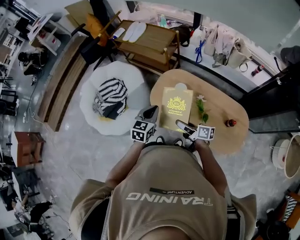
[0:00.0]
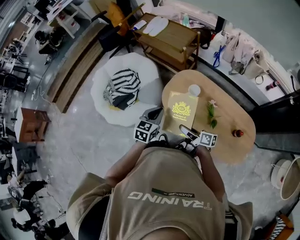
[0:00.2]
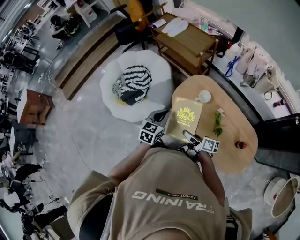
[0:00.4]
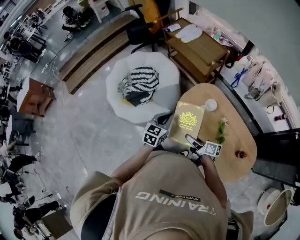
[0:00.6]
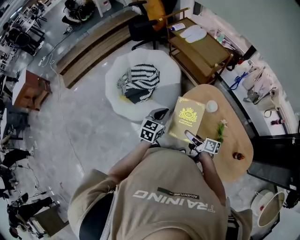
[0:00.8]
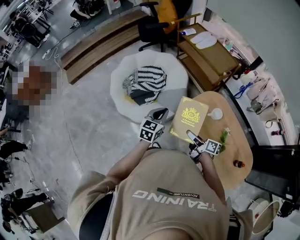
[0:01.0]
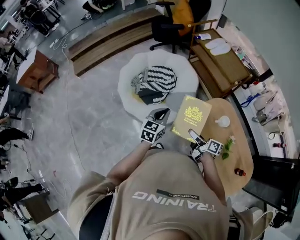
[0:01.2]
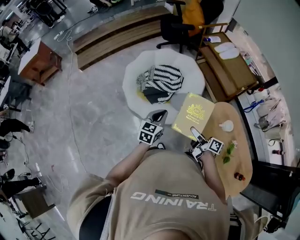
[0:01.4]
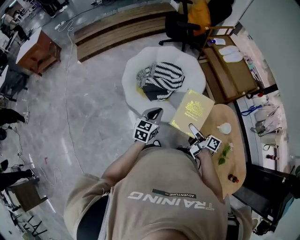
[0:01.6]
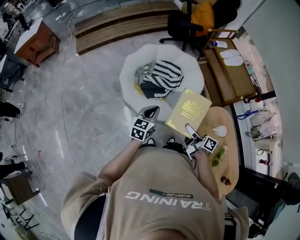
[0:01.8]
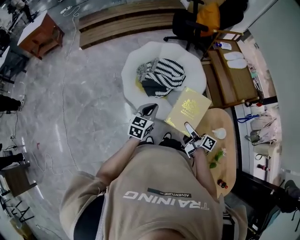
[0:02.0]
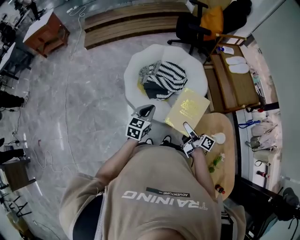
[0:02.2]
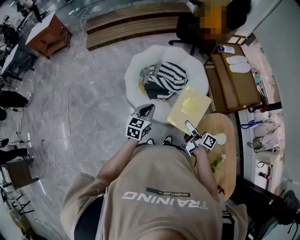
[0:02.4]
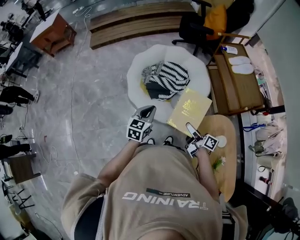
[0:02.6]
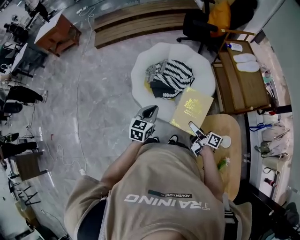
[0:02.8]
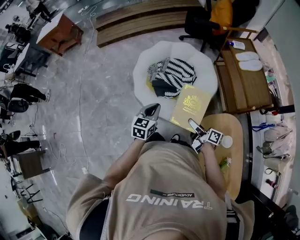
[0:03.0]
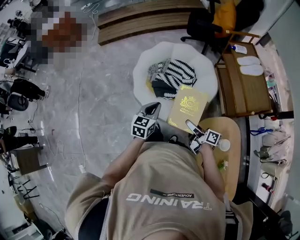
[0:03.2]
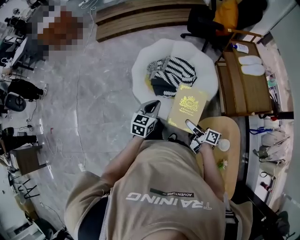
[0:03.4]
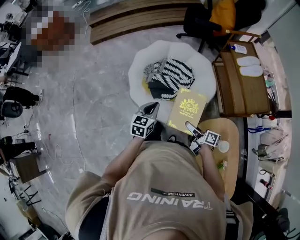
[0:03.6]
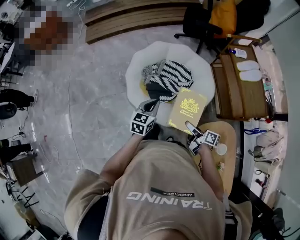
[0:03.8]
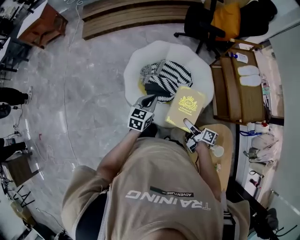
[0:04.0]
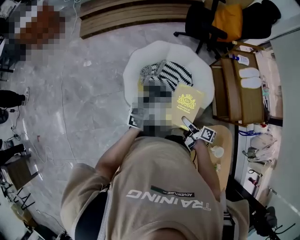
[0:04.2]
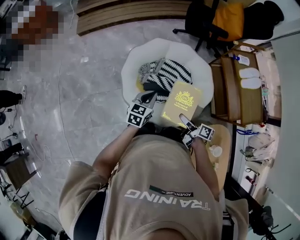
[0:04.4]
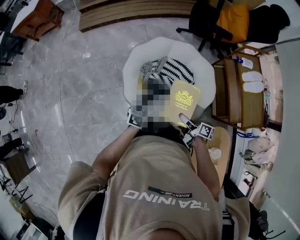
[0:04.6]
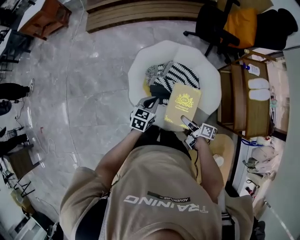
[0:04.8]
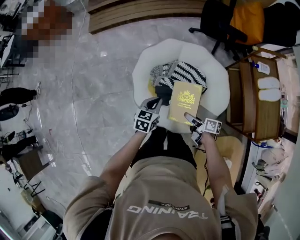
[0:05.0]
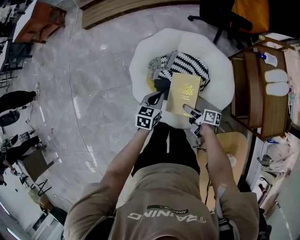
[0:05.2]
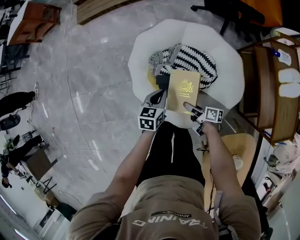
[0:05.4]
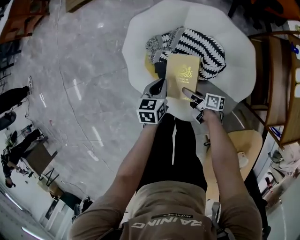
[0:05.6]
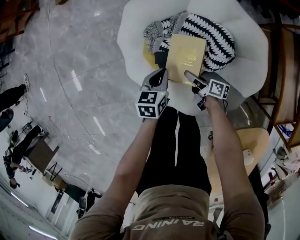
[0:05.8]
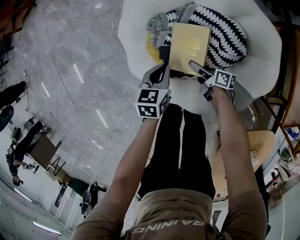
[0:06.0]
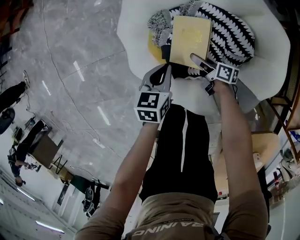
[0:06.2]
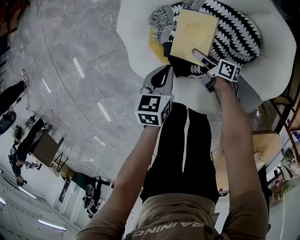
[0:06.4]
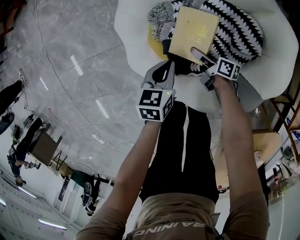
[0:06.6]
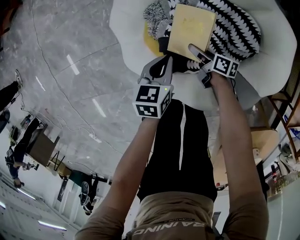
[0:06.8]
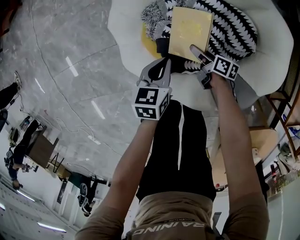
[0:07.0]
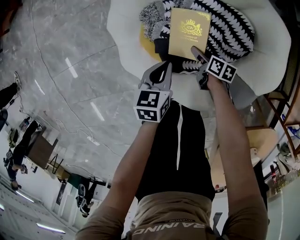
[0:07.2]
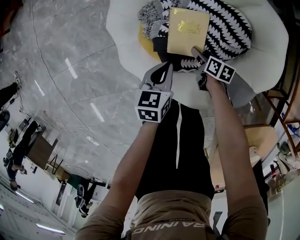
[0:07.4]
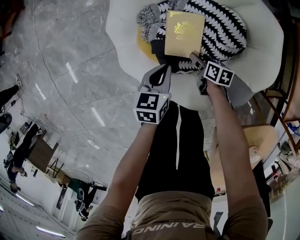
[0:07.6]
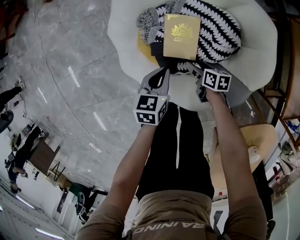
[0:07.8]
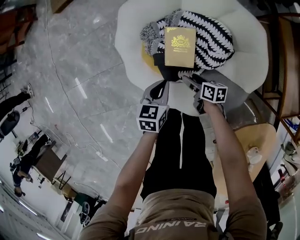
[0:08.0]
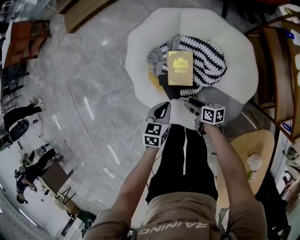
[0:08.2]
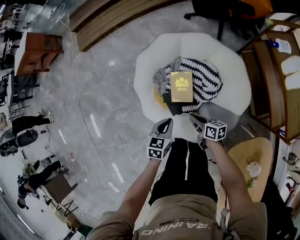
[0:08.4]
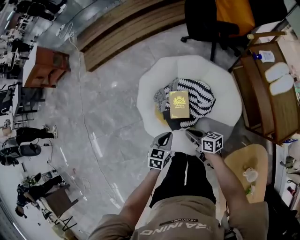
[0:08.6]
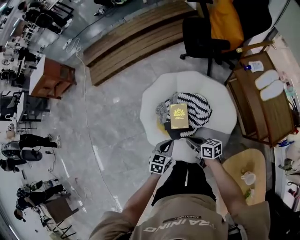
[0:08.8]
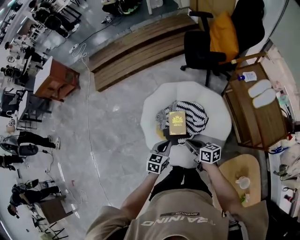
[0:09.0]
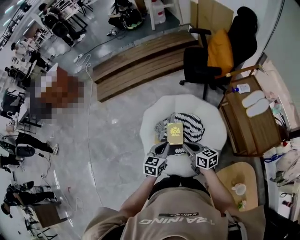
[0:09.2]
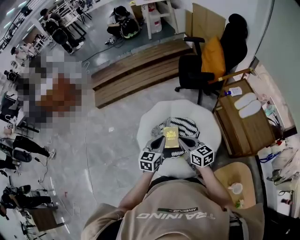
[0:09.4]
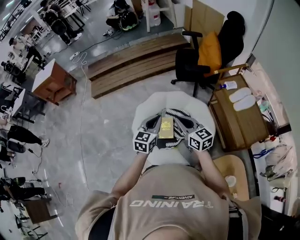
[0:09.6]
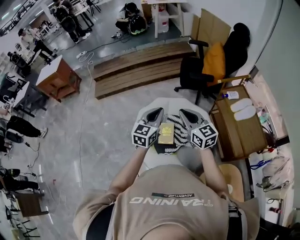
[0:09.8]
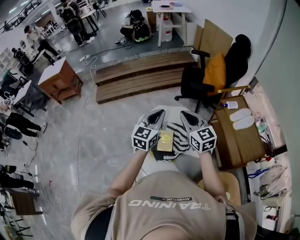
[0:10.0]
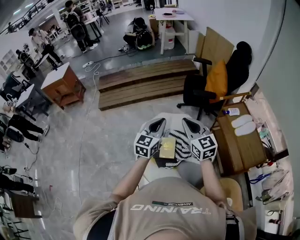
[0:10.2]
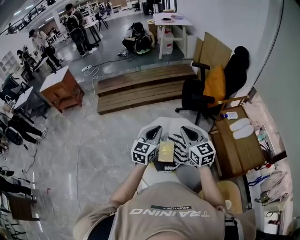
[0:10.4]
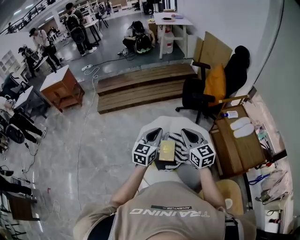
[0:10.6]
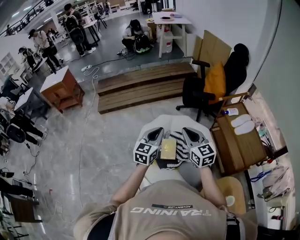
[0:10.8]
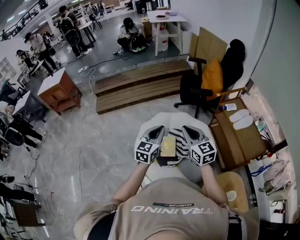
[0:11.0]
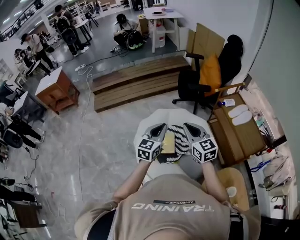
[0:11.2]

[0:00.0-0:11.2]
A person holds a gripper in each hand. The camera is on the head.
0:00.0 to 0:01.6: The left gripper moves roughly 40 cm, and rotates some 30 degrees; the right gripper shifts by some 35 cm, and changes its angle by about 20 degrees.
0:01.6 to 0:03.2: Both grippers travel together forward and to the right, about 10 cm. The right gripper changes its angle by roughly 20 degrees.
0:03.2 to 0:04.8: The left gripper heads forward and downward, covering approximately 25 cm; the right gripper moves forward, roughly 20 cm, and turns by roughly 20 degrees.
0:04.8 to 0:06.4: The right gripper is displaced downward and forward by approximately 50 cm. The left gripper is displaced downward by about 35 cm, and turns by about 20 degrees.
0:06.4 to 0:08.0: The left gripper shifts approximately 5 cm upward. The right gripper shifts some 10 cm upward and backward, and swivels some 20 degrees.
0:08.0 to 0:09.6: The two grippers go roughly 60 cm upward. The right gripper points its fingers some 30 degrees further upward, and closes, while the left gripper swivels some 40 degrees.
0:09.6 to 0:11.2: The two grippers go about 5 cm upward.

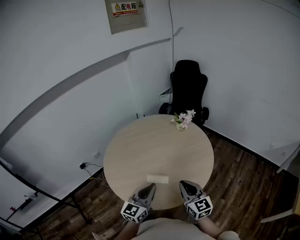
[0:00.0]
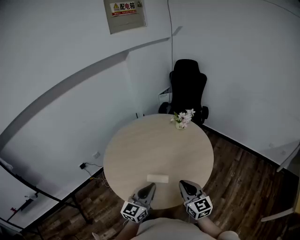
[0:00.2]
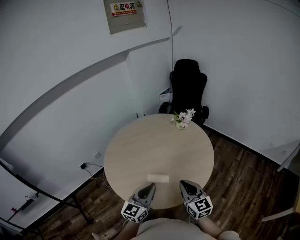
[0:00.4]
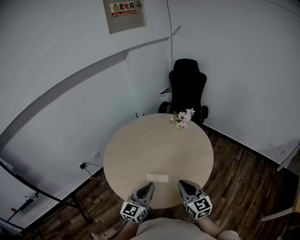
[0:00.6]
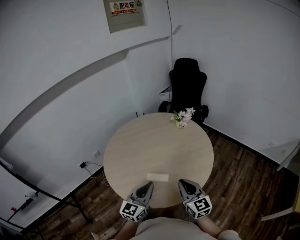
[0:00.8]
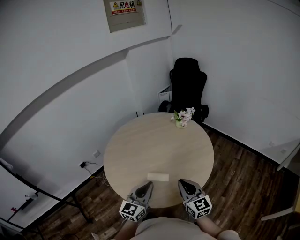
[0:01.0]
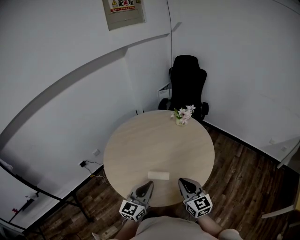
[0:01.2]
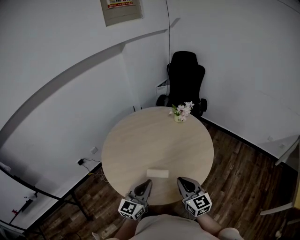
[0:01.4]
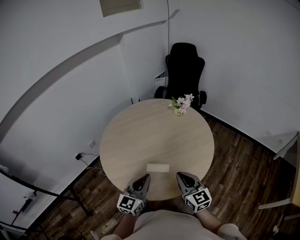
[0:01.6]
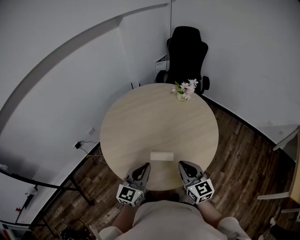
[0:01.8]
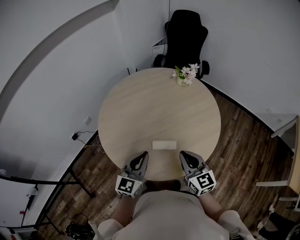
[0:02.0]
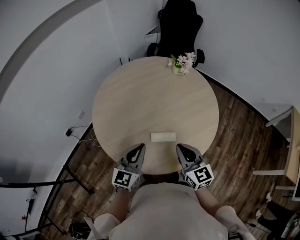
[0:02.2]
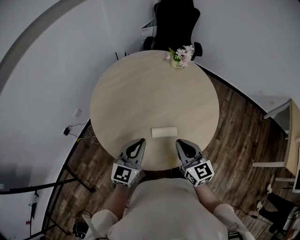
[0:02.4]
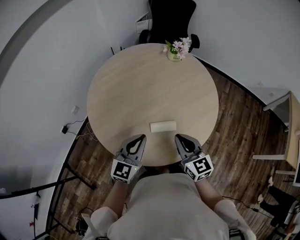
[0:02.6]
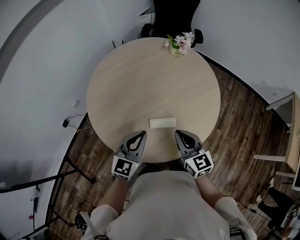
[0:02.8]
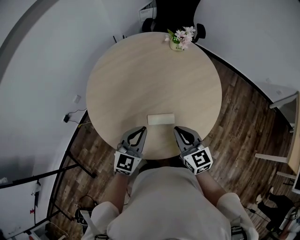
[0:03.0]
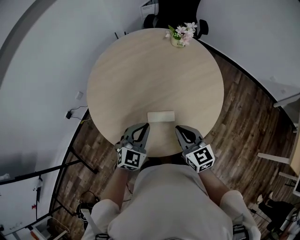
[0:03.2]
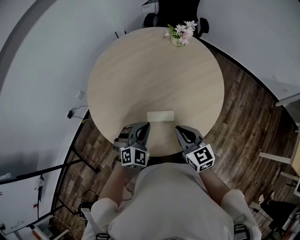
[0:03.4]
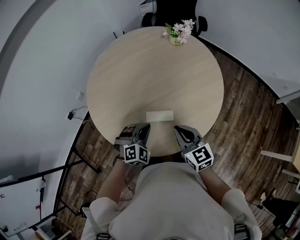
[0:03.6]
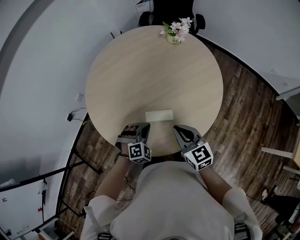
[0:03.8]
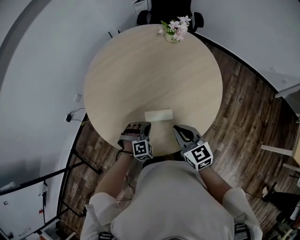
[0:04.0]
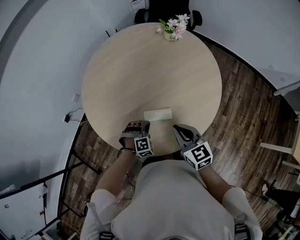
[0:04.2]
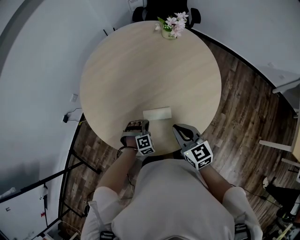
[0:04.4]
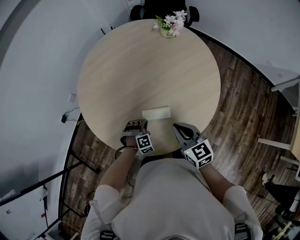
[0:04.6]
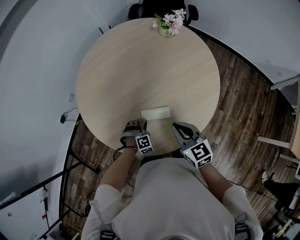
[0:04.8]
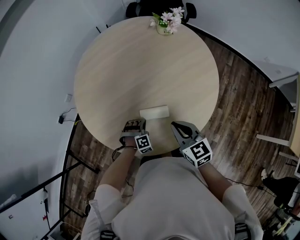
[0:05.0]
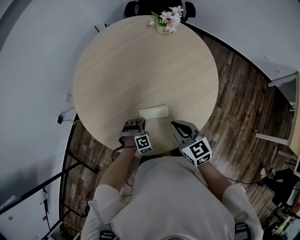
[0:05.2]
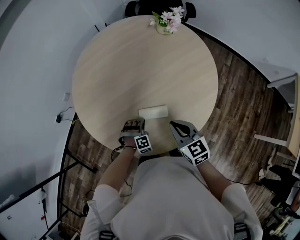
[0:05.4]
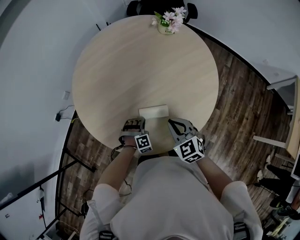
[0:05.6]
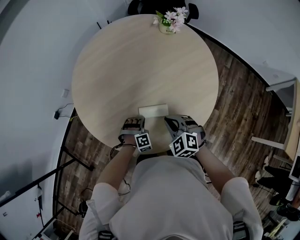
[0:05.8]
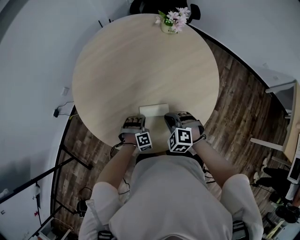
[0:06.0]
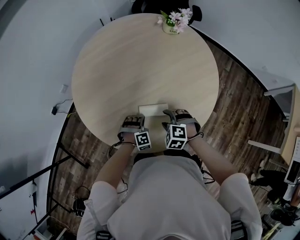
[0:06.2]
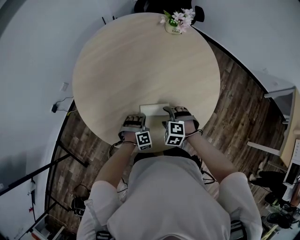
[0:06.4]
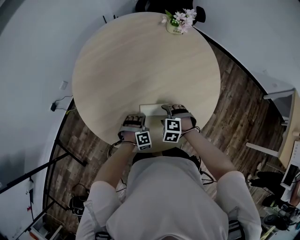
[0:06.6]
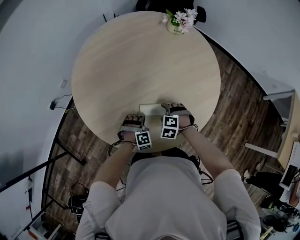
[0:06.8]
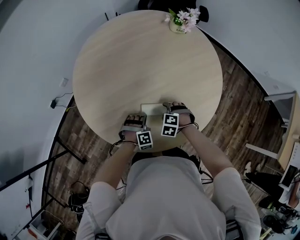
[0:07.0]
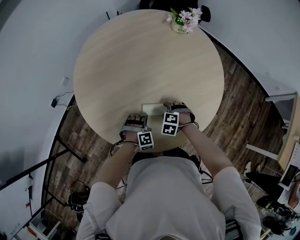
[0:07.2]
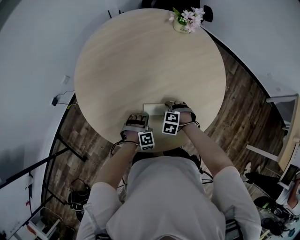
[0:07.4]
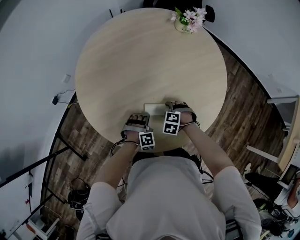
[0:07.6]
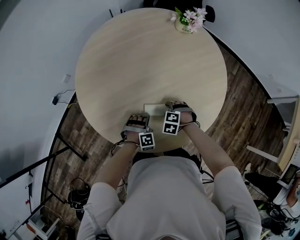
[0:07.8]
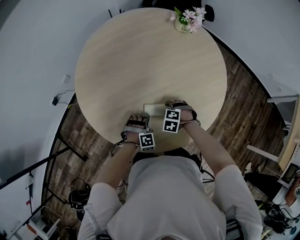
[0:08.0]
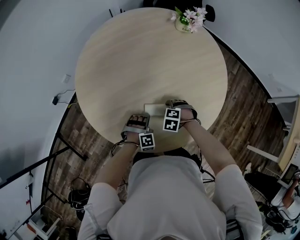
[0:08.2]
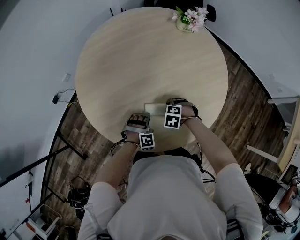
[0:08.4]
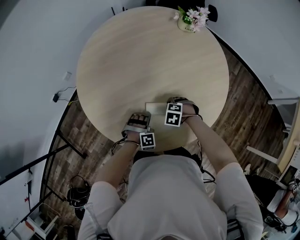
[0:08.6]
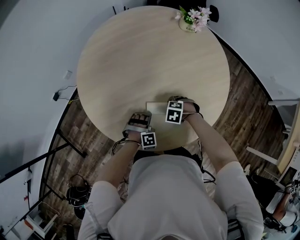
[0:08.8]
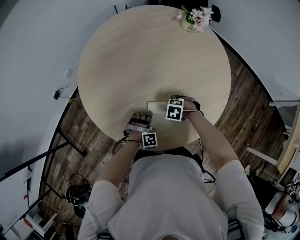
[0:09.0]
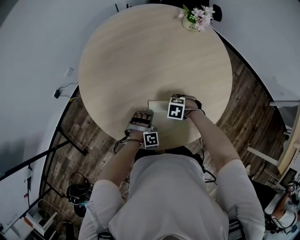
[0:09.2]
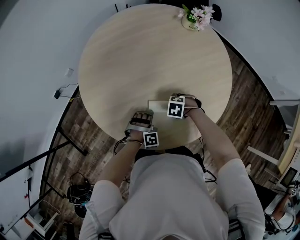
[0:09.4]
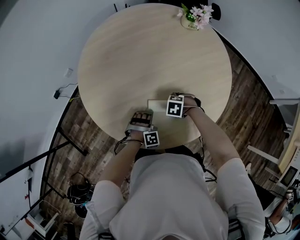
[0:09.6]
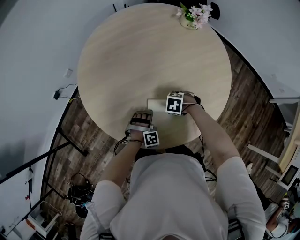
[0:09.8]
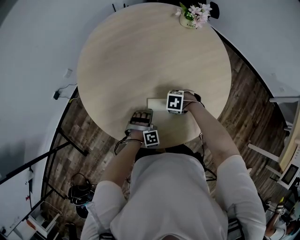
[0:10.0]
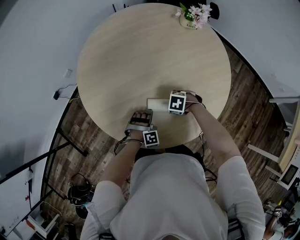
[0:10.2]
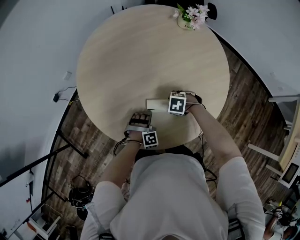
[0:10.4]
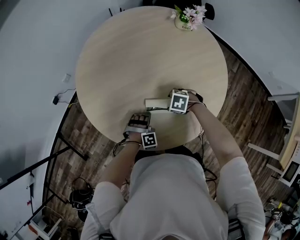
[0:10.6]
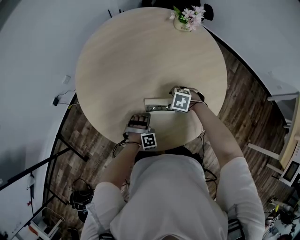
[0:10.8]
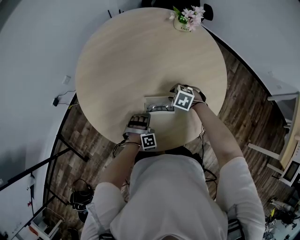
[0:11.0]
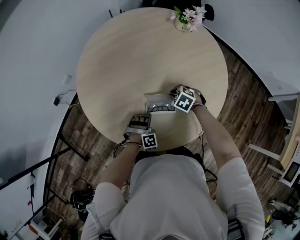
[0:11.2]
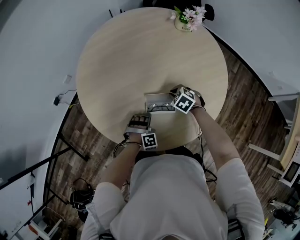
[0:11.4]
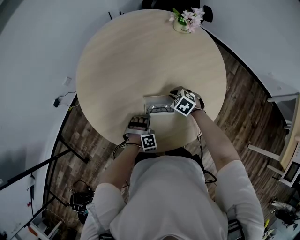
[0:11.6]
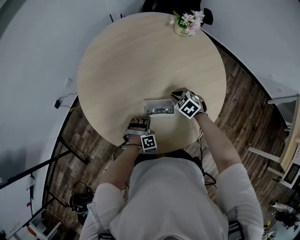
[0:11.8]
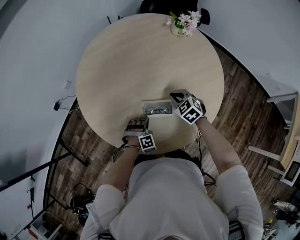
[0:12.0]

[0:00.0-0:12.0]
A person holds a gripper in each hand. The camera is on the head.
0:00.0 to 0:01.6: The left gripper shifts by some 5 cm.
0:01.6 to 0:03.0: The left gripper travels downward, forward and to the left by roughly 15 cm, and changes its angle by roughly 20 degrees. Meanwhile the right gripper heads downward, to the left and forward, covering some 10 cm.
0:03.0 to 0:04.4: The right gripper heads downward, covering some 5 cm. The left gripper is displaced downward by some 25 cm, and tips its fingers downward by approximately 40 degrees.
0:04.4 to 0:06.0: The right gripper goes approximately 10 cm downward, and rotates around the line of its fingers by approximately 50 degrees, counterclockwise from behind.
0:06.0 to 0:07.6: The right gripper goes roughly 15 cm downward, changes its angle by approximately 20 degrees, and opens.
0:07.6 to 0:09.0: The grippers stay close to where they were, moving slightly.
0:09.0 to 0:10.4: The grippers stay close to where they were, moving slightly.
0:10.4 to 0:12.0: The right gripper travels upward by some 10 cm, changes its angle by some 40 degrees, and closes.
